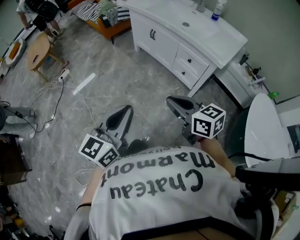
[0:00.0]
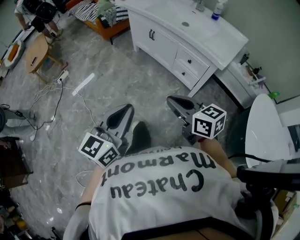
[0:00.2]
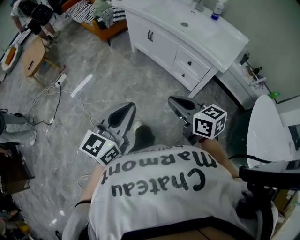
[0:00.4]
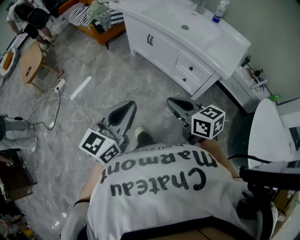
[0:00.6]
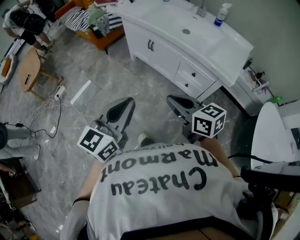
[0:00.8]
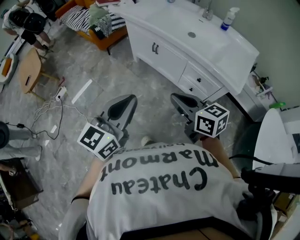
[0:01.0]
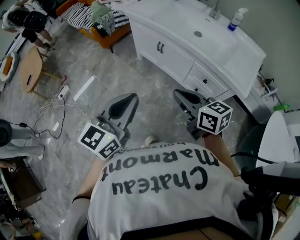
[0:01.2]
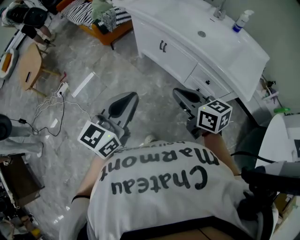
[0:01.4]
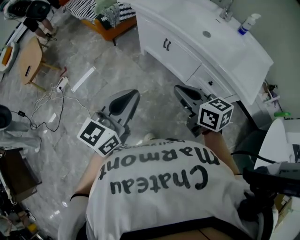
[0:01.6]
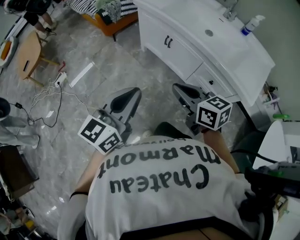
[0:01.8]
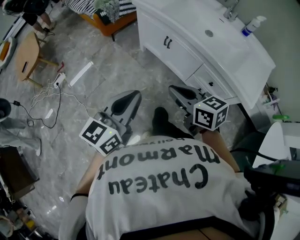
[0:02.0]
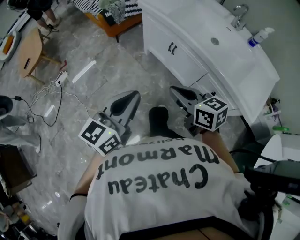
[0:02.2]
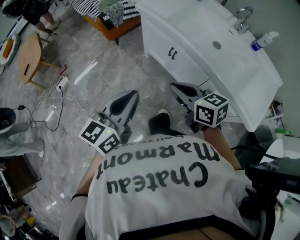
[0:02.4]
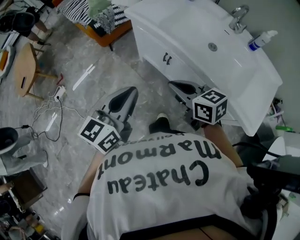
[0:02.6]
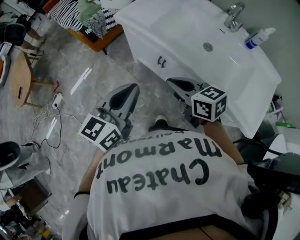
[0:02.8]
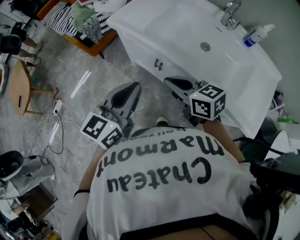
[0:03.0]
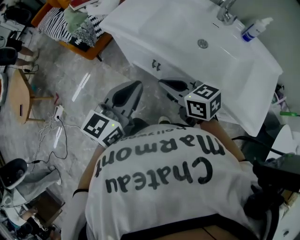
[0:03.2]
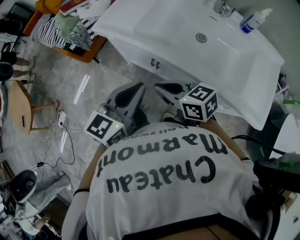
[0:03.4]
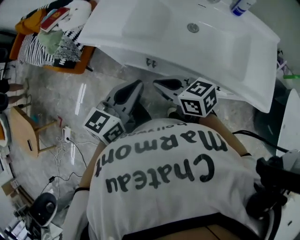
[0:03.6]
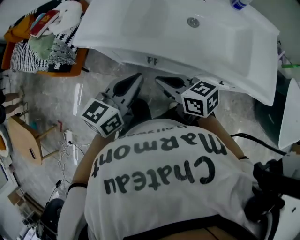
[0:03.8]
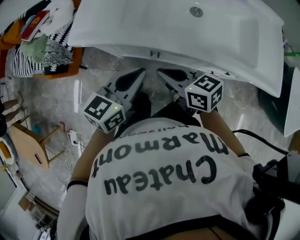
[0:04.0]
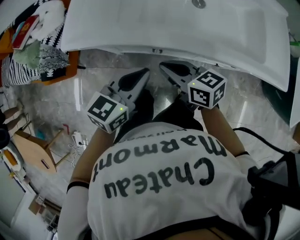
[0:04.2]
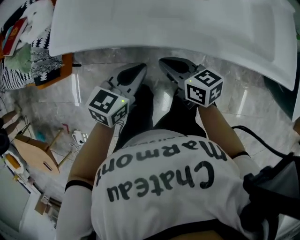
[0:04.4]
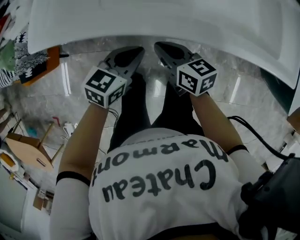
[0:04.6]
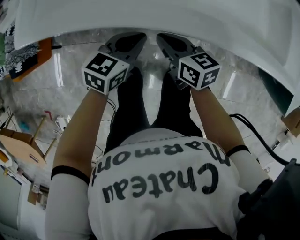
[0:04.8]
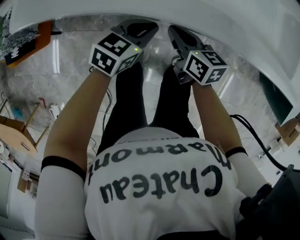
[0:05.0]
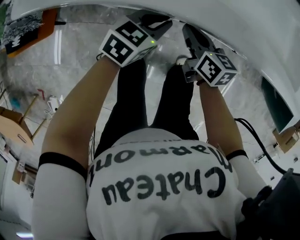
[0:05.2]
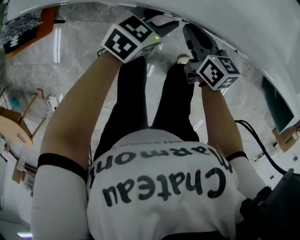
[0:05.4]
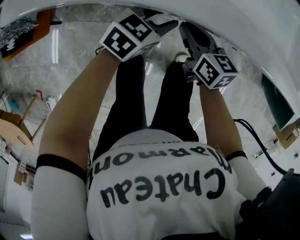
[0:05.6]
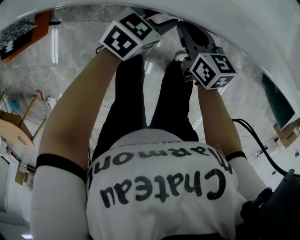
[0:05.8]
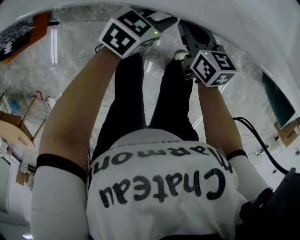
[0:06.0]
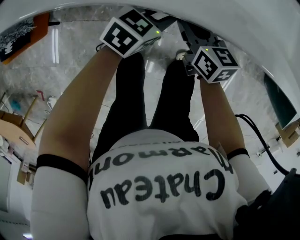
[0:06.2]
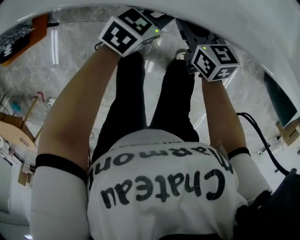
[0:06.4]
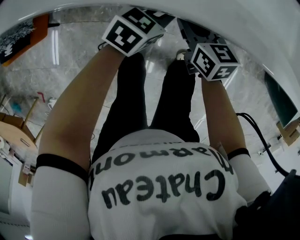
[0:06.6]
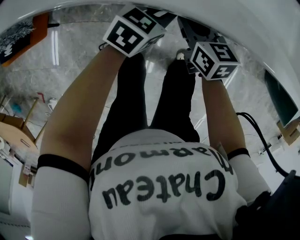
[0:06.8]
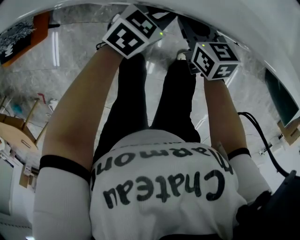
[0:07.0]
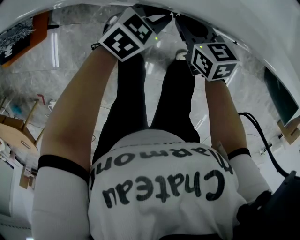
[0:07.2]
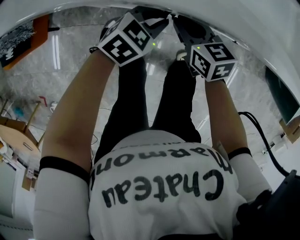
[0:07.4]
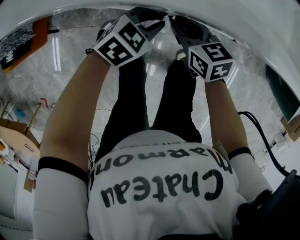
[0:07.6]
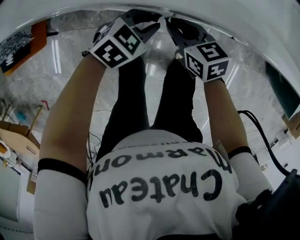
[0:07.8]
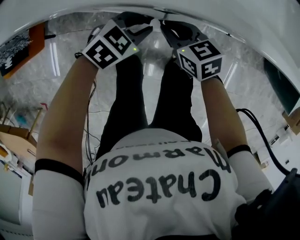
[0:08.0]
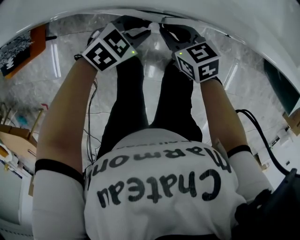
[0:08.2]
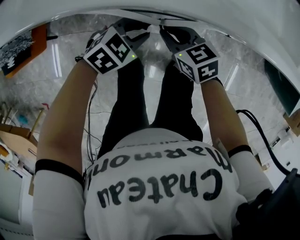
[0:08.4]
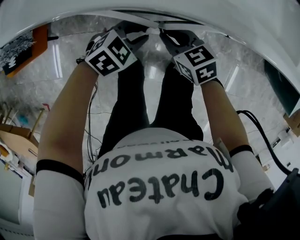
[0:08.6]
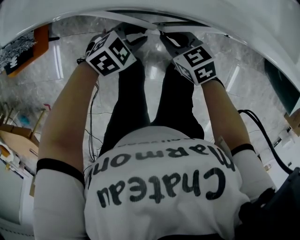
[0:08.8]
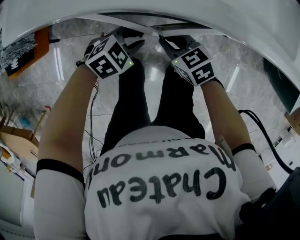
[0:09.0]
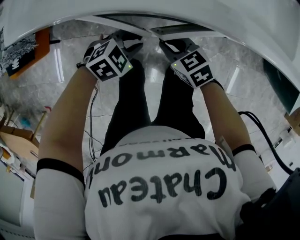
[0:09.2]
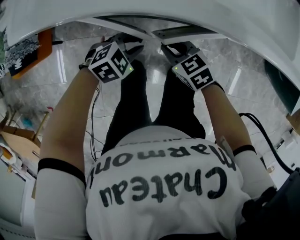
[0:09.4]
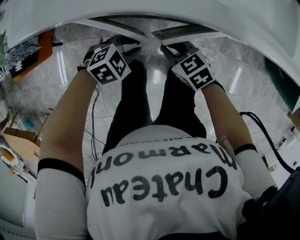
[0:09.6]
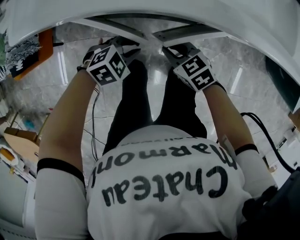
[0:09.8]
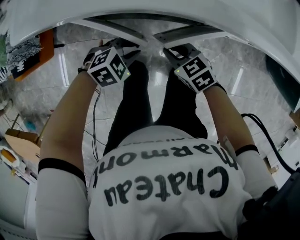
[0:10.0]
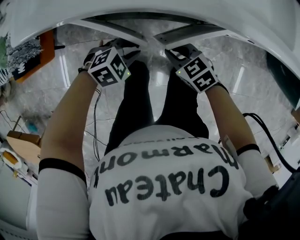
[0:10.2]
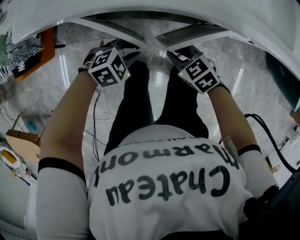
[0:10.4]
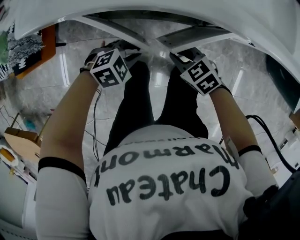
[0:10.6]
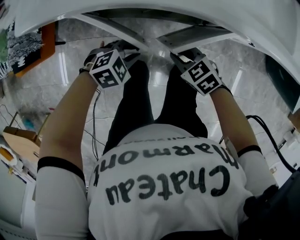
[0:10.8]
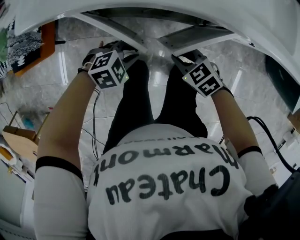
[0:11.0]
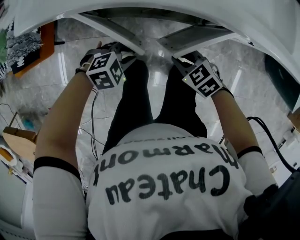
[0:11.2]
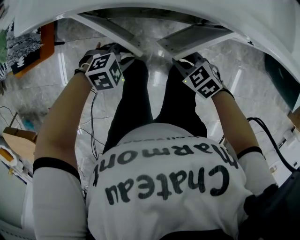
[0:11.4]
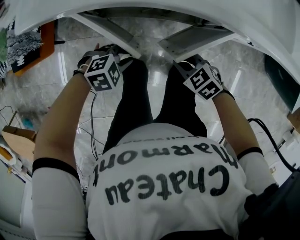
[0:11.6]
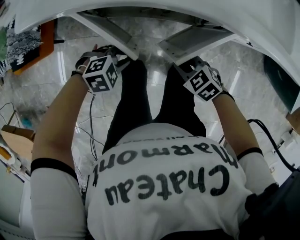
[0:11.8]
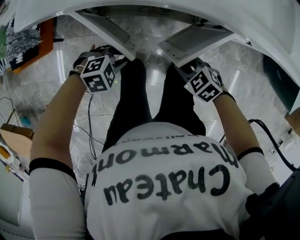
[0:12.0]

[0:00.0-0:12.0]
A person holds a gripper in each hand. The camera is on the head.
0:00.0 to 0:01.6: Both grippers travel together forward, about 35 cm.
0:01.6 to 0:03.0: The grippers both shift forward by roughly 25 cm.
0:03.0 to 0:04.4: Both grippers travel together downward, approximately 20 cm. The left gripper swivels about 50 degrees; the right gripper changes its angle by about 40 degrees.
0:04.4 to 0:06.0: The left gripper travels downward and forward by roughly 20 cm, and opens up. The right gripper shifts approximately 15 cm downward.
0:06.0 to 0:07.6: The left gripper closes up.
0:07.6 to 0:09.0: The right gripper shifts by about 5 cm. The left gripper changes place by roughly 5 cm.
0:09.0 to 0:10.4: The right gripper moves approximately 5 cm; the left gripper shifts by approximately 5 cm.
0:10.4 to 0:12.0: The left gripper shifts by roughly 5 cm. Meanwhile the right gripper ends up roughly 5 cm from where it was.

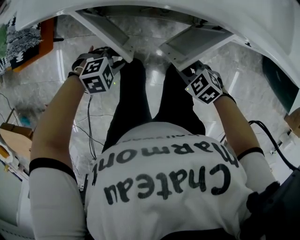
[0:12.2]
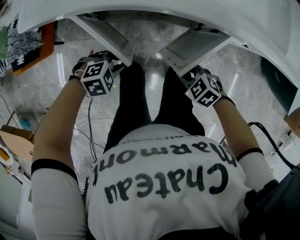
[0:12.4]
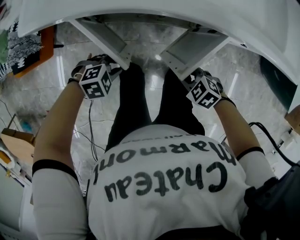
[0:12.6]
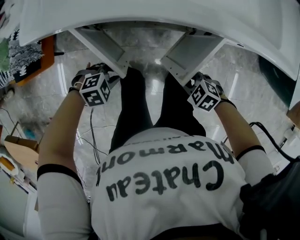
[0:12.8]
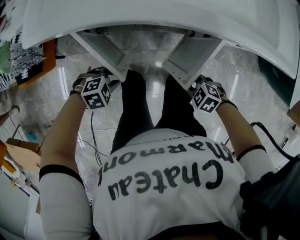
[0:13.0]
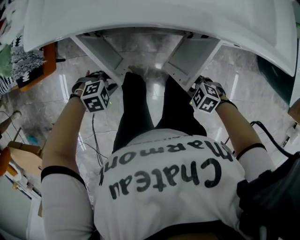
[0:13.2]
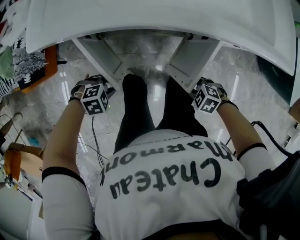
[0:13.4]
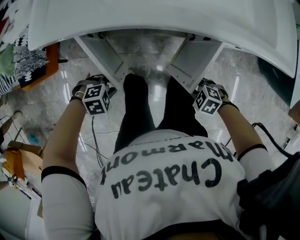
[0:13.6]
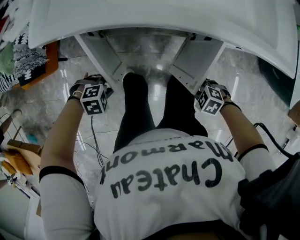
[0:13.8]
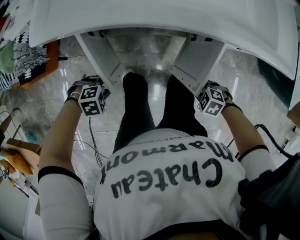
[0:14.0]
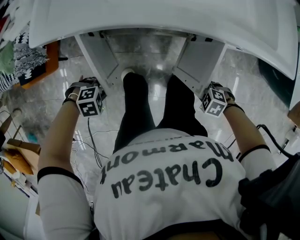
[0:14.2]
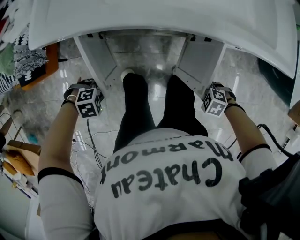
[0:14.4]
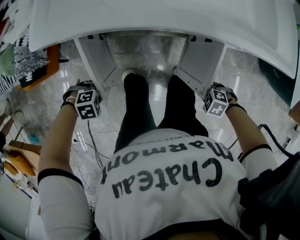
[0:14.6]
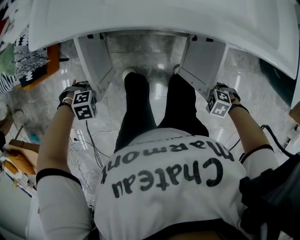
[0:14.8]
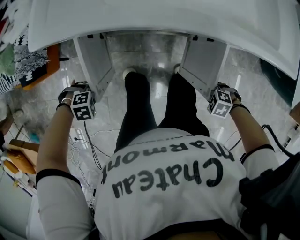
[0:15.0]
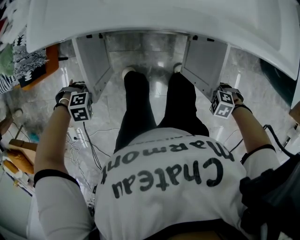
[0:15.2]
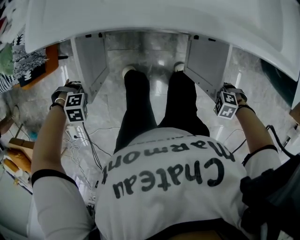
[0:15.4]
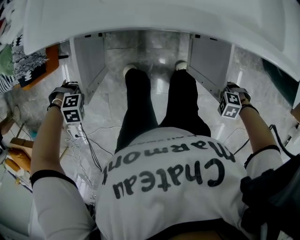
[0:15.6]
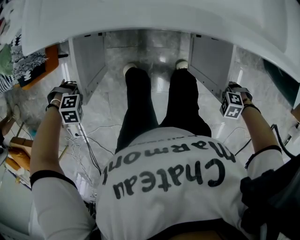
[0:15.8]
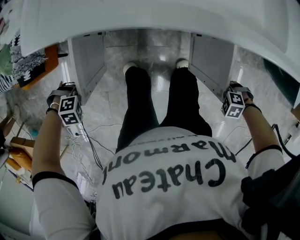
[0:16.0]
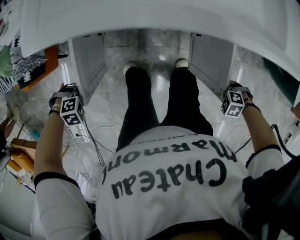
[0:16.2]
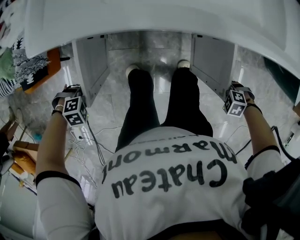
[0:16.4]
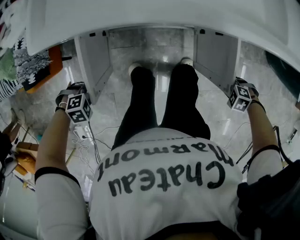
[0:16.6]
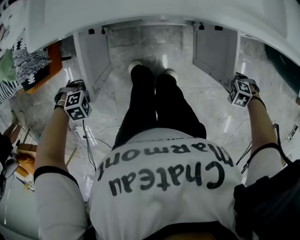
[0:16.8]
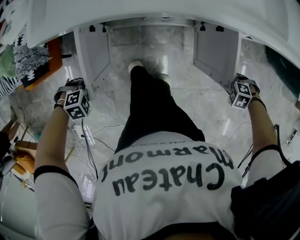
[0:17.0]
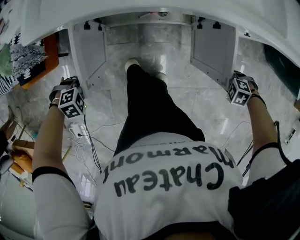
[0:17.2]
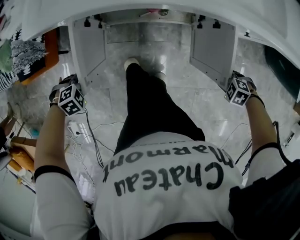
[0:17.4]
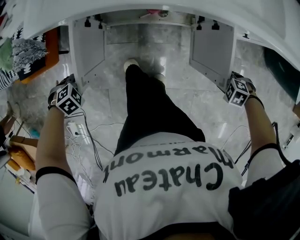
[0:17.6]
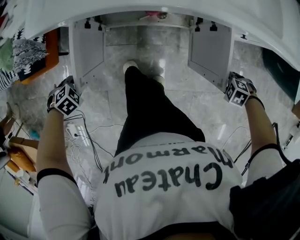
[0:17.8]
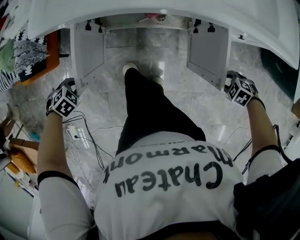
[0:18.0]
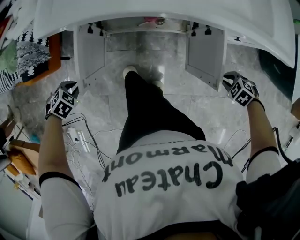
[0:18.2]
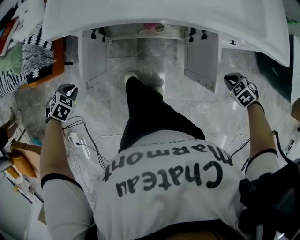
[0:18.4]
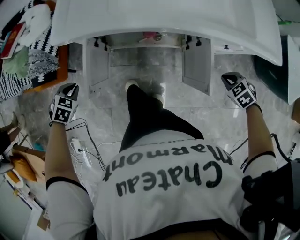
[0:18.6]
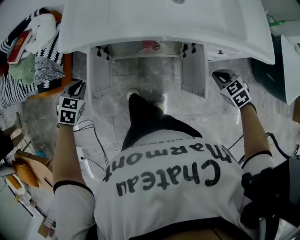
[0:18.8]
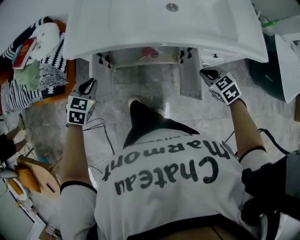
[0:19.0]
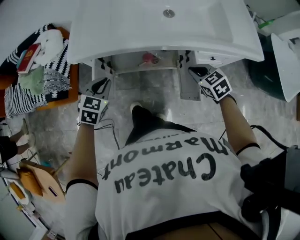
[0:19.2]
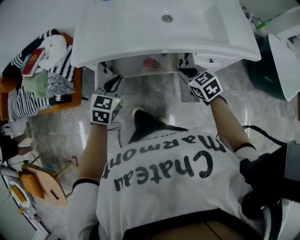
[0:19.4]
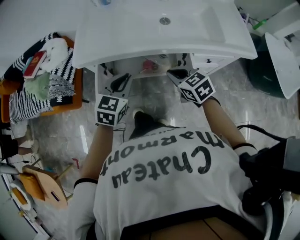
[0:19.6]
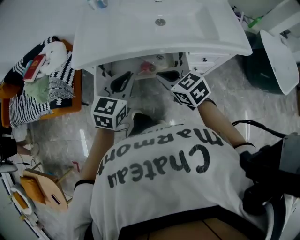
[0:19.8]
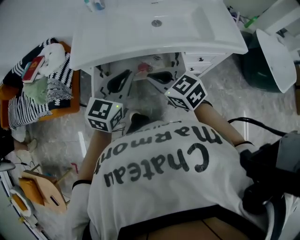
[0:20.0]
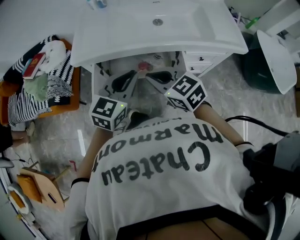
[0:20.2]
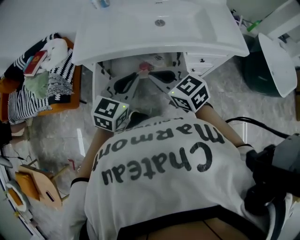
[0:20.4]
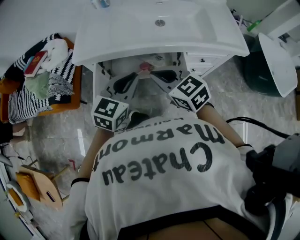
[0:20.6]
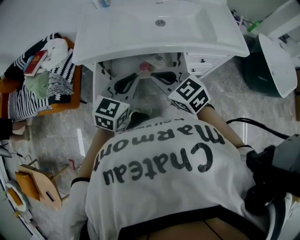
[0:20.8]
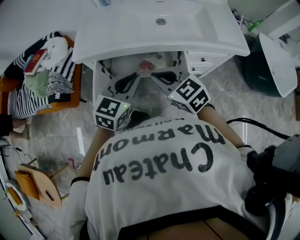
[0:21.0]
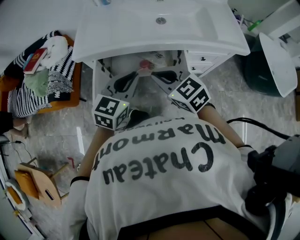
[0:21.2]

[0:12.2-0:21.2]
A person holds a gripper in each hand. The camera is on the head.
0:12.2 to 0:13.8: The right gripper moves some 10 cm, while the left gripper changes place by about 10 cm.
0:13.8 to 0:15.2: The left gripper ends up about 10 cm from where it was; the right gripper moves approximately 10 cm.
0:15.2 to 0:16.6: The grippers move only a little.
0:16.6 to 0:18.2: The left gripper changes place by approximately 5 cm, and swivels approximately 40 degrees. The right gripper moves some 5 cm.
0:18.2 to 0:19.8: Both grippers travel together upward, approximately 30 cm. The left gripper points its fingers approximately 60 degrees further upward. The right gripper tilts its fingers approximately 50 degrees upward.
0:19.8 to 0:21.2: The right gripper changes place by approximately 5 cm.

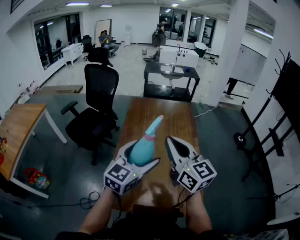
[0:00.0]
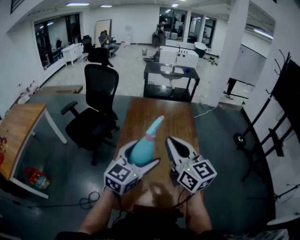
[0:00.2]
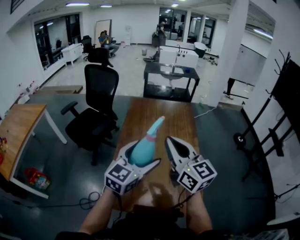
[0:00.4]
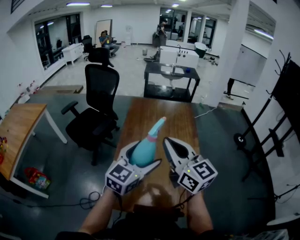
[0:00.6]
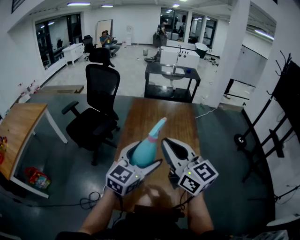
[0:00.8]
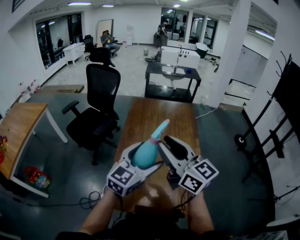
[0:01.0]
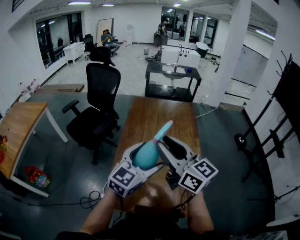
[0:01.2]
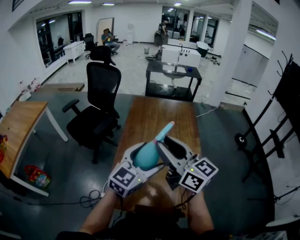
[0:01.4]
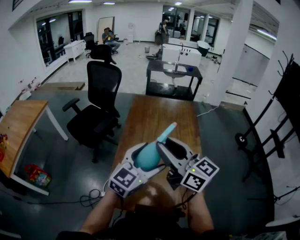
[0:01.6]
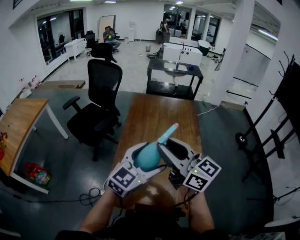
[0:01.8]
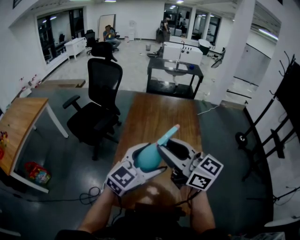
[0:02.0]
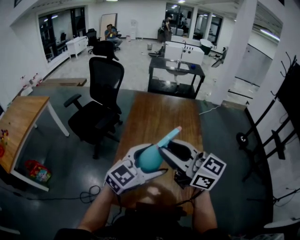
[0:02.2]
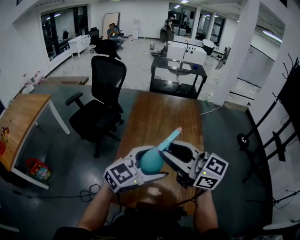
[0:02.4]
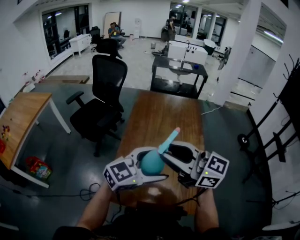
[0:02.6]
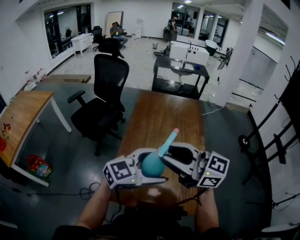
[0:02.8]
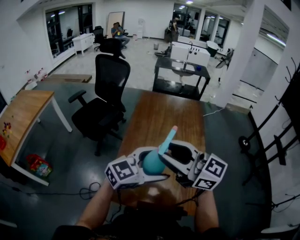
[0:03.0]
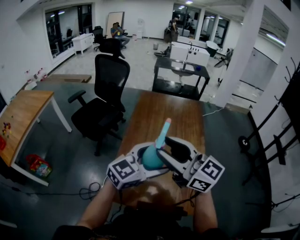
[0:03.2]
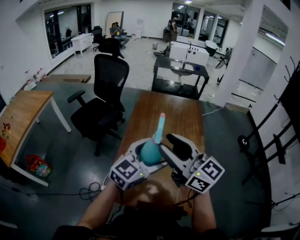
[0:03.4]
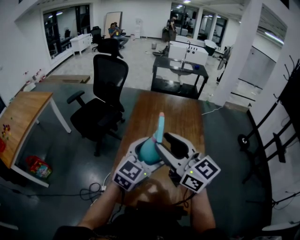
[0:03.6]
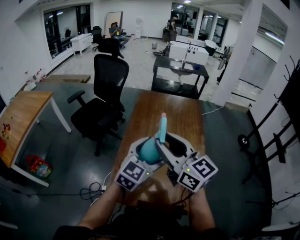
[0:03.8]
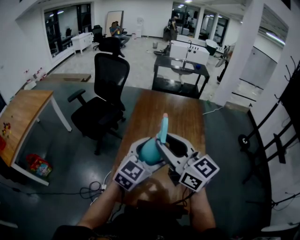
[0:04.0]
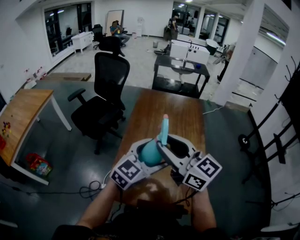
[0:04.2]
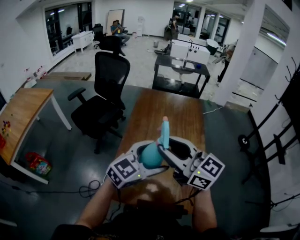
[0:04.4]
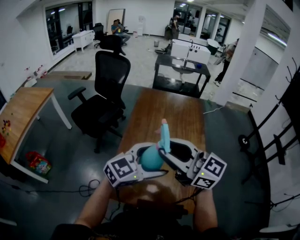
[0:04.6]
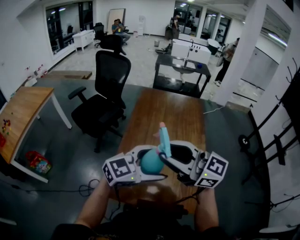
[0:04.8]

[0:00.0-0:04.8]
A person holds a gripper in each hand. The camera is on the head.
0:00.0 to 0:01.6: The right gripper opens its fingers.
